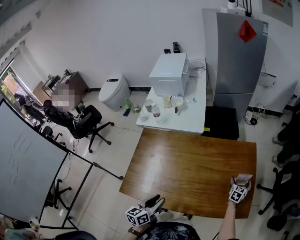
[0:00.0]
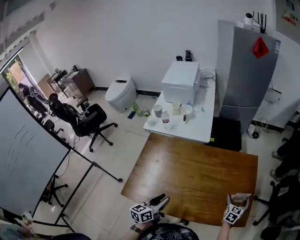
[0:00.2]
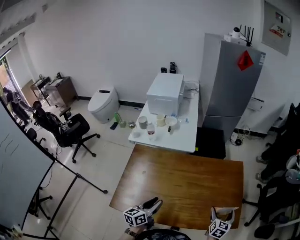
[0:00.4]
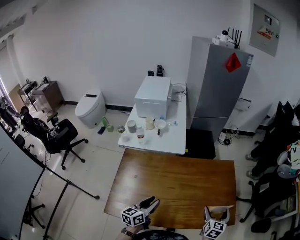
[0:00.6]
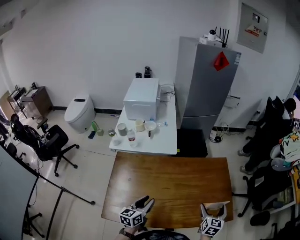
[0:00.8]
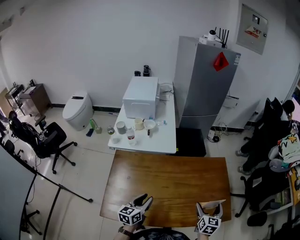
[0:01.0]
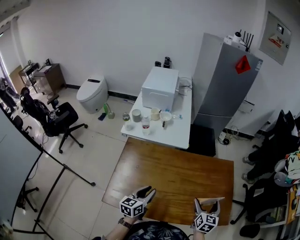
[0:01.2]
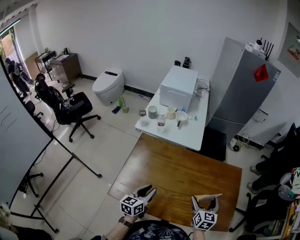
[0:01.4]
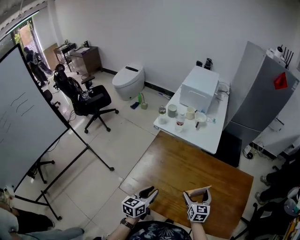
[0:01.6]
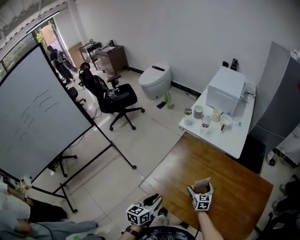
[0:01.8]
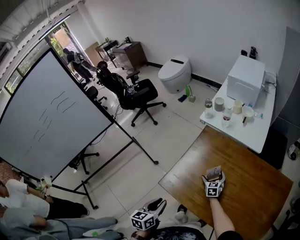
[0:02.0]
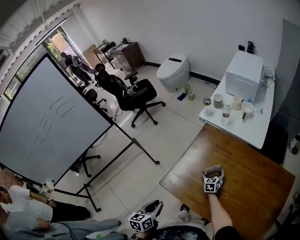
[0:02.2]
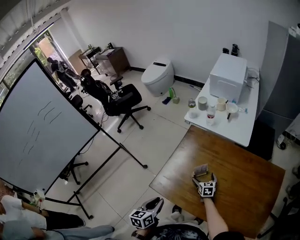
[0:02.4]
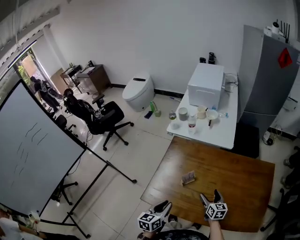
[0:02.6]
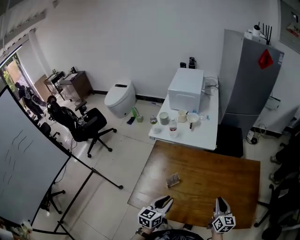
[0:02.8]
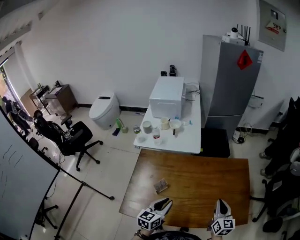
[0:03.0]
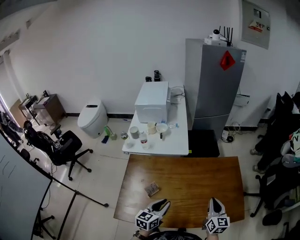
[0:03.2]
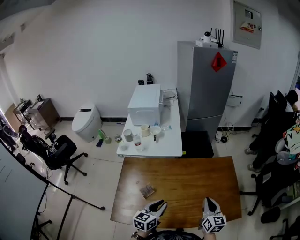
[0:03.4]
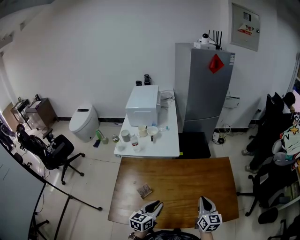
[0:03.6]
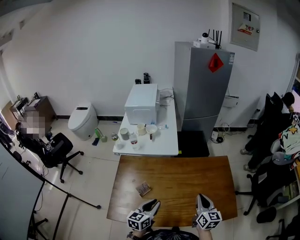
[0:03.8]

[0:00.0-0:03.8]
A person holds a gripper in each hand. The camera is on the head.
0:00.0 to 0:01.2: The right gripper is displaced backward, upward and to the left by roughly 35 cm, while the left gripper goes about 10 cm to the left and forward.
0:01.2 to 0:02.6: The left gripper rotates about 20 degrees. Meanwhile the right gripper turns by approximately 40 degrees.
0:02.6 to 0:03.8: The right gripper travels upward by roughly 20 cm, swivels some 30 degrees, and closes. The left gripper ends up roughly 15 cm from where it was, and turns by approximately 30 degrees.

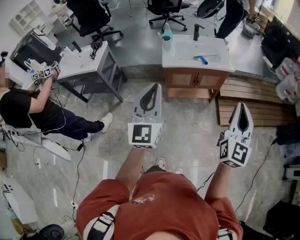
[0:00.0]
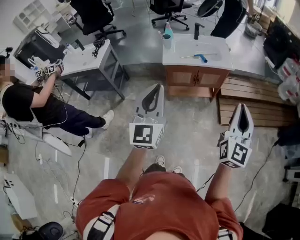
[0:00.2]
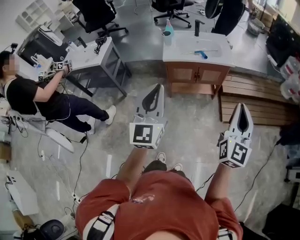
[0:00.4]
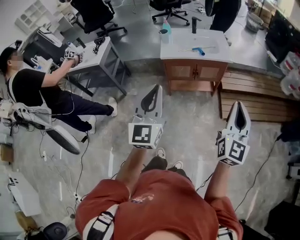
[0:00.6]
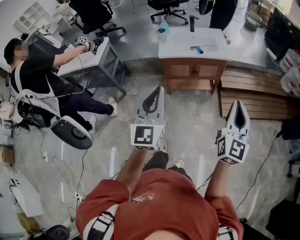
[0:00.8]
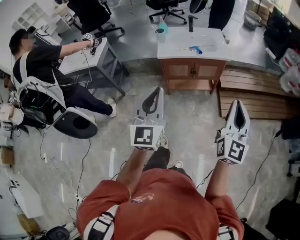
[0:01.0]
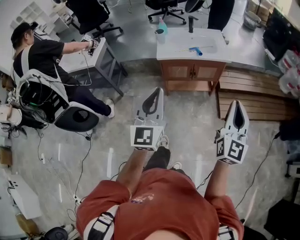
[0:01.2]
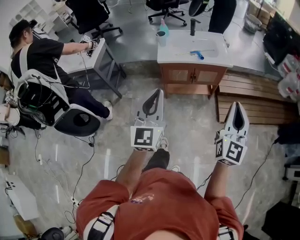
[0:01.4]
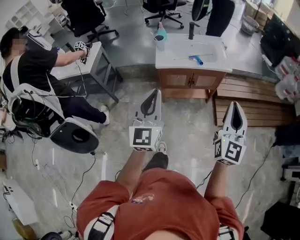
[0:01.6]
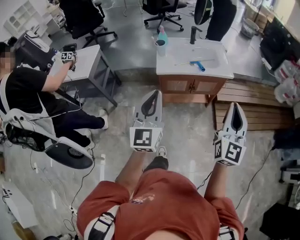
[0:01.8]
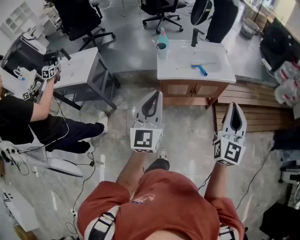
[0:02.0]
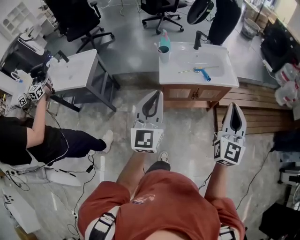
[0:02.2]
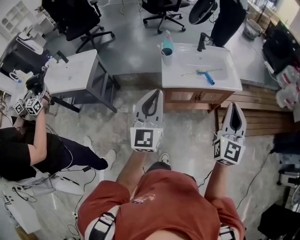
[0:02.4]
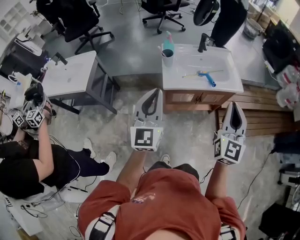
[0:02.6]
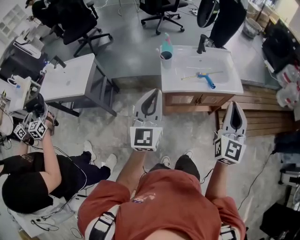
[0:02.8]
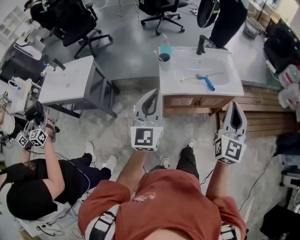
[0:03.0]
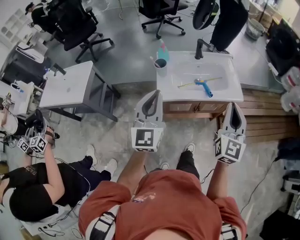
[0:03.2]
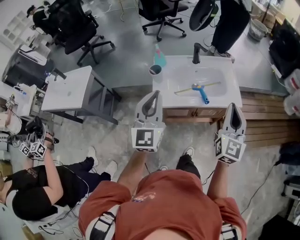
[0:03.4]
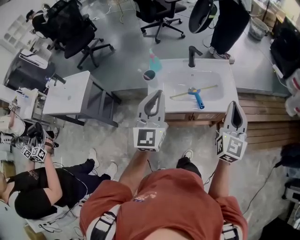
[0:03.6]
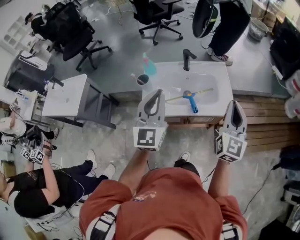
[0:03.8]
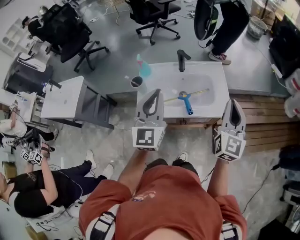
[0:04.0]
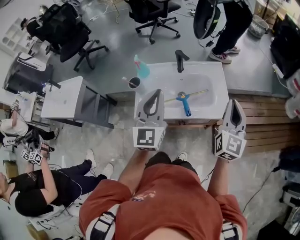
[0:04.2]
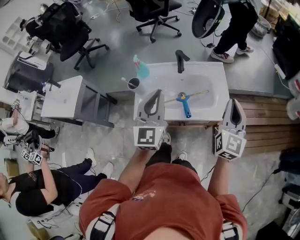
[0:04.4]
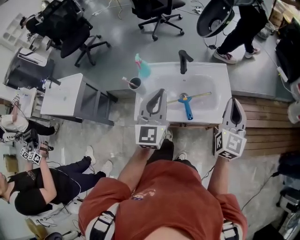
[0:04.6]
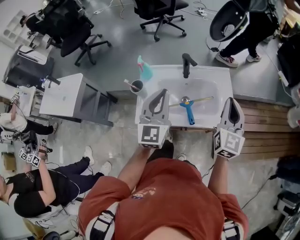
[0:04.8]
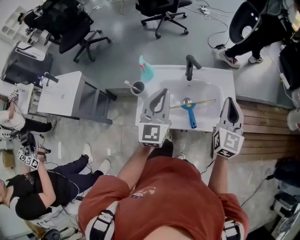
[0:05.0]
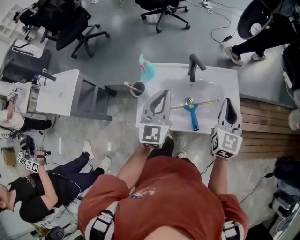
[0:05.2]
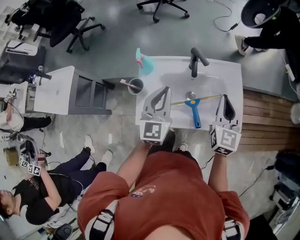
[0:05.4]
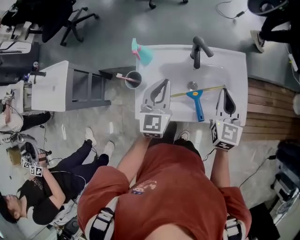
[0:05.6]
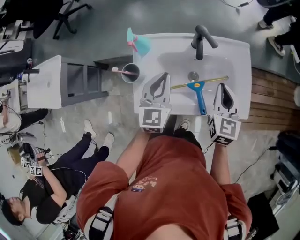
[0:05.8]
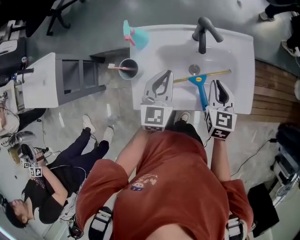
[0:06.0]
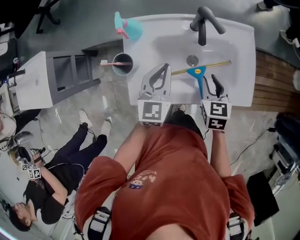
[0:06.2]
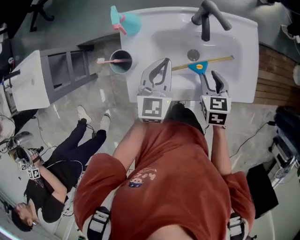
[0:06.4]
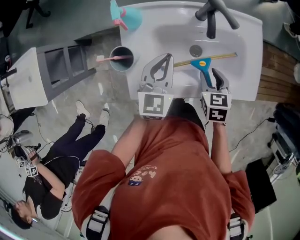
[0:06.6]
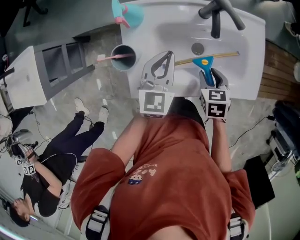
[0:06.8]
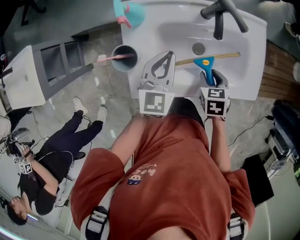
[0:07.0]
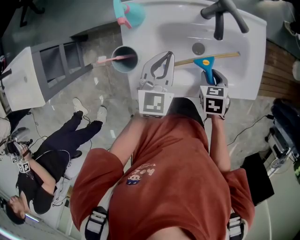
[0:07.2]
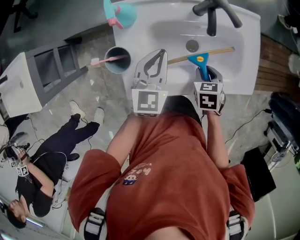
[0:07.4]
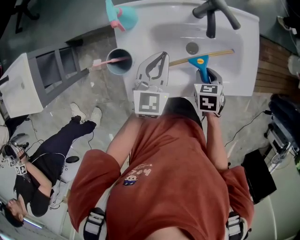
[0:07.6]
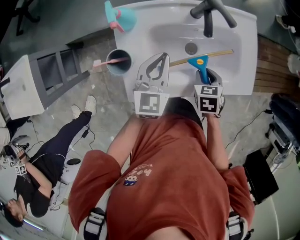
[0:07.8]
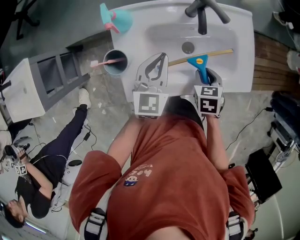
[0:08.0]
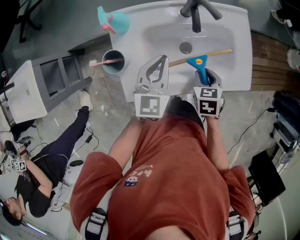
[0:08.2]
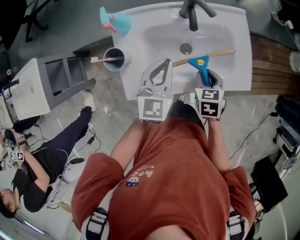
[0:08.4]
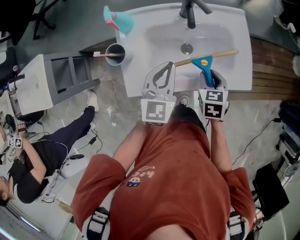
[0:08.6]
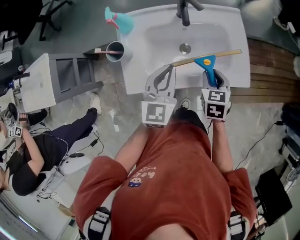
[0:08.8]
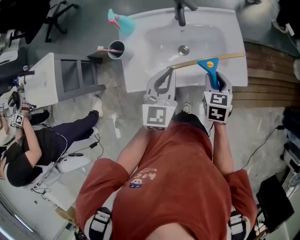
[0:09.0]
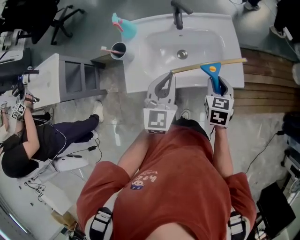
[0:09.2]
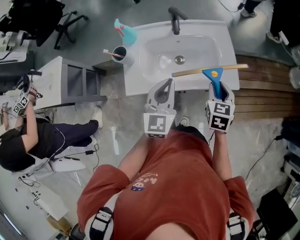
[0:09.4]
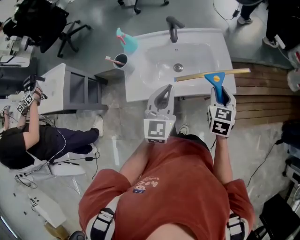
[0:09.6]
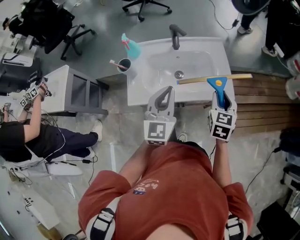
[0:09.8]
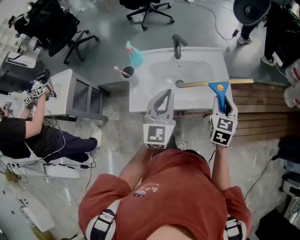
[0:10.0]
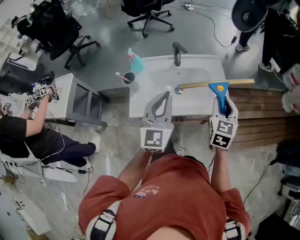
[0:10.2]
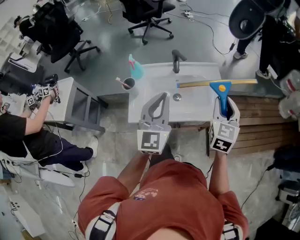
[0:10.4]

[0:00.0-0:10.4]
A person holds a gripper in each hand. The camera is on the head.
0:00.0 to 0:01.4: Both grippers move to the right, about 5 cm.
0:01.4 to 0:03.0: Both grippers move forward and to the left, roughly 40 cm.
0:03.0 to 0:04.4: The two grippers go roughly 40 cm forward and to the right.
0:04.4 to 0:06.0: The right gripper shifts some 40 cm downward, to the left and forward, and tips its fingers downward by roughly 30 degrees. The left gripper goes approximately 35 cm downward, forward and to the left, and changes its angle by roughly 20 degrees.
0:06.0 to 0:07.4: The right gripper travels downward by some 15 cm, tips its fingers downward by some 30 degrees, and opens up, while the left gripper shifts about 10 cm downward.
0:07.4 to 0:09.0: The left gripper shifts some 25 cm to the right, backward and upward. Meanwhile the right gripper moves upward, to the right and backward, approximately 20 cm, and rotates some 20 degrees.
0:09.0 to 0:10.4: The left gripper heads upward and backward, covering approximately 20 cm, and turns by about 20 degrees. Meanwhile the right gripper moves upward and to the right, approximately 25 cm, and points its fingers approximately 30 degrees further upward.

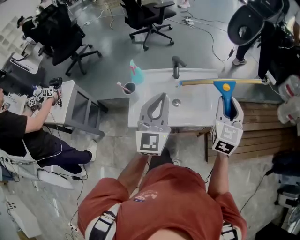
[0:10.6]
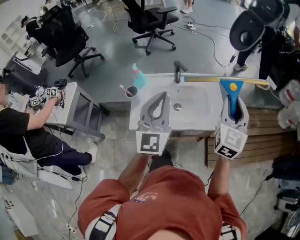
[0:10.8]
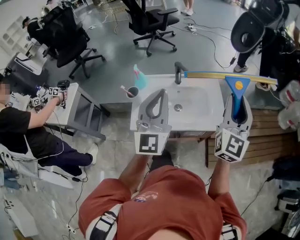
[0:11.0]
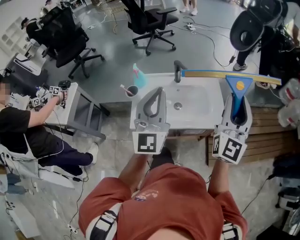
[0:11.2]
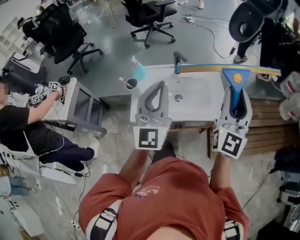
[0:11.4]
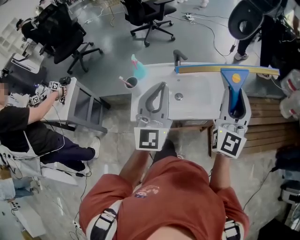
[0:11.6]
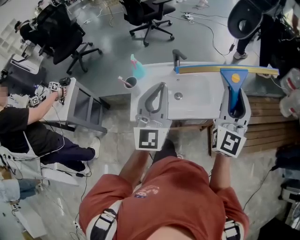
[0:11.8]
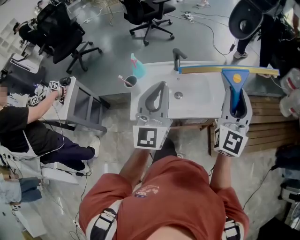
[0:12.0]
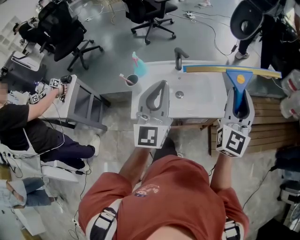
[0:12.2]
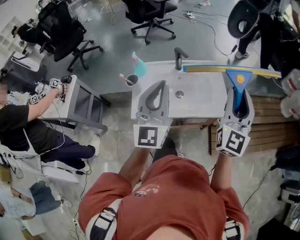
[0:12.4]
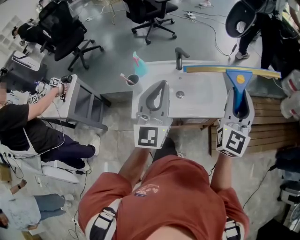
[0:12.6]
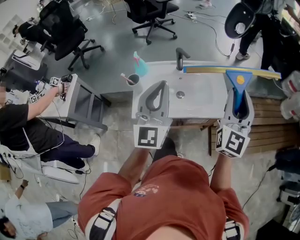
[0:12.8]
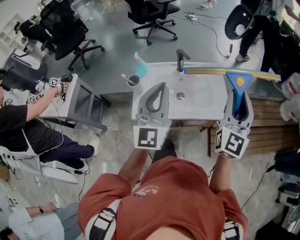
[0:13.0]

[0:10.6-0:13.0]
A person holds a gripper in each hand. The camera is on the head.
0:10.6 to 0:11.8: The right gripper is displaced upward and backward by some 10 cm, and turns by about 20 degrees.
0:11.8 to 0:13.0: The grippers move only a little.

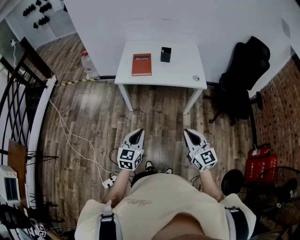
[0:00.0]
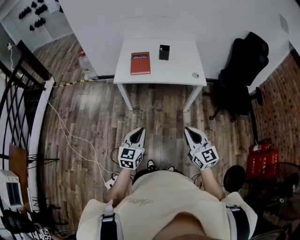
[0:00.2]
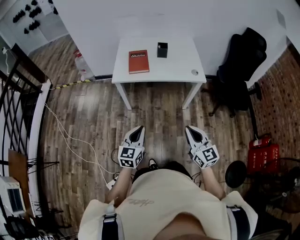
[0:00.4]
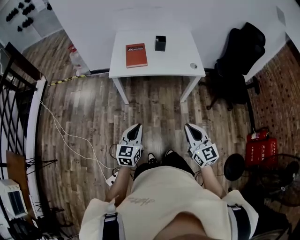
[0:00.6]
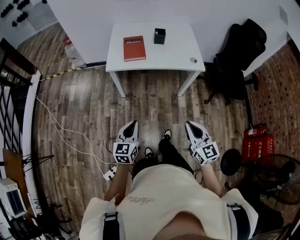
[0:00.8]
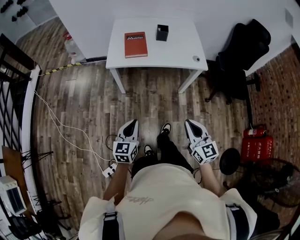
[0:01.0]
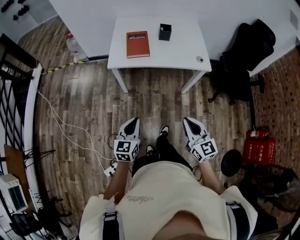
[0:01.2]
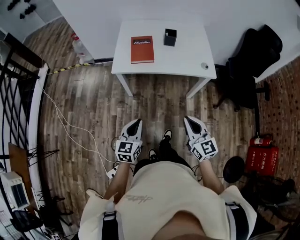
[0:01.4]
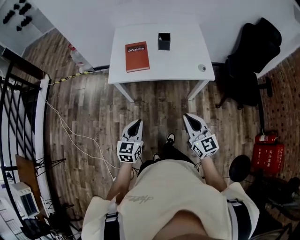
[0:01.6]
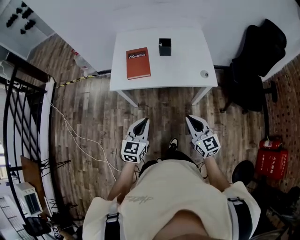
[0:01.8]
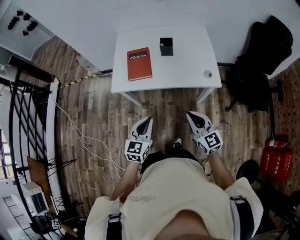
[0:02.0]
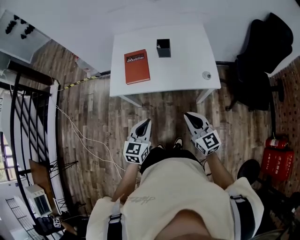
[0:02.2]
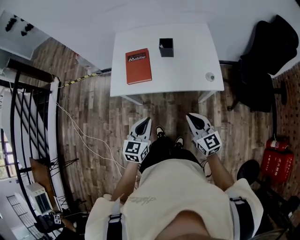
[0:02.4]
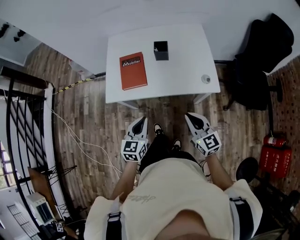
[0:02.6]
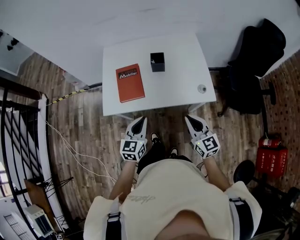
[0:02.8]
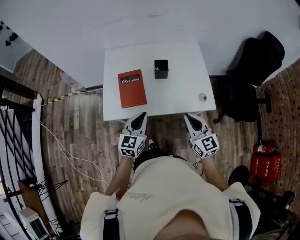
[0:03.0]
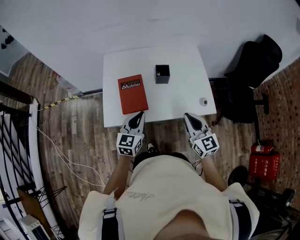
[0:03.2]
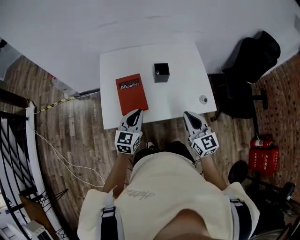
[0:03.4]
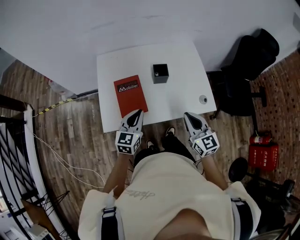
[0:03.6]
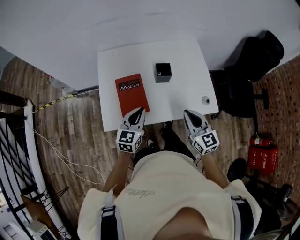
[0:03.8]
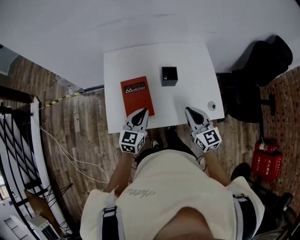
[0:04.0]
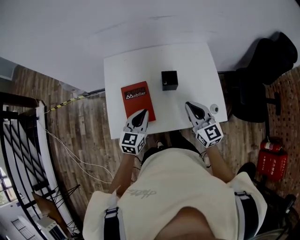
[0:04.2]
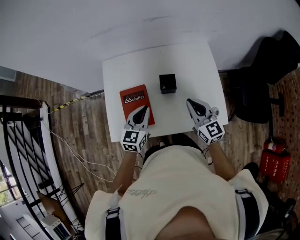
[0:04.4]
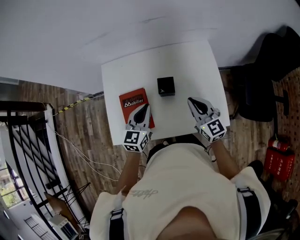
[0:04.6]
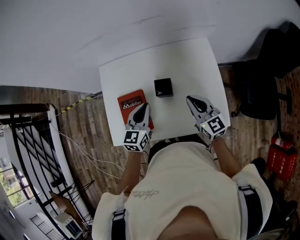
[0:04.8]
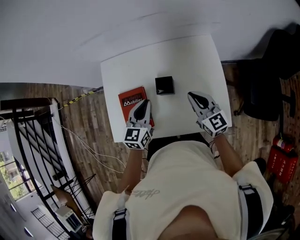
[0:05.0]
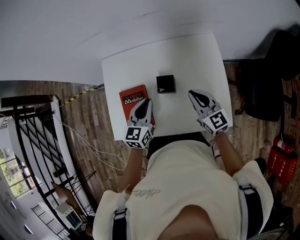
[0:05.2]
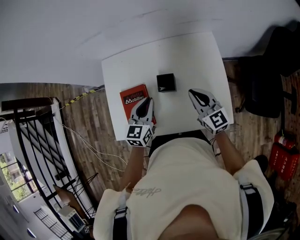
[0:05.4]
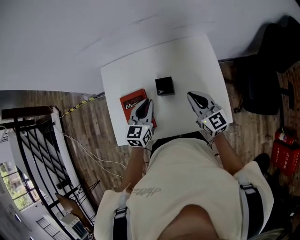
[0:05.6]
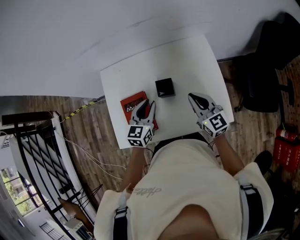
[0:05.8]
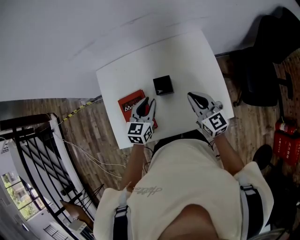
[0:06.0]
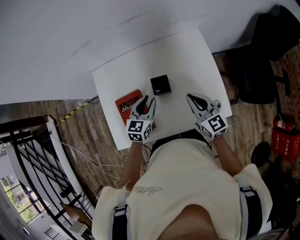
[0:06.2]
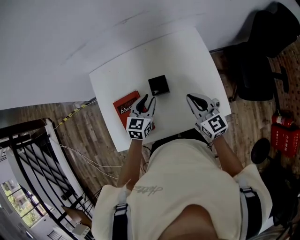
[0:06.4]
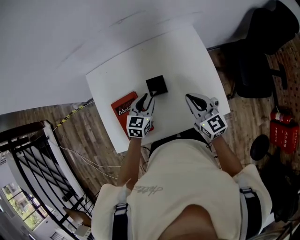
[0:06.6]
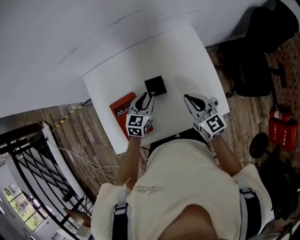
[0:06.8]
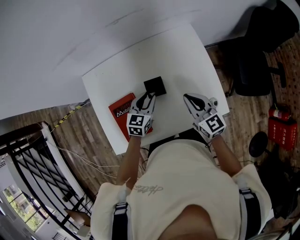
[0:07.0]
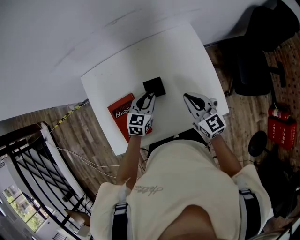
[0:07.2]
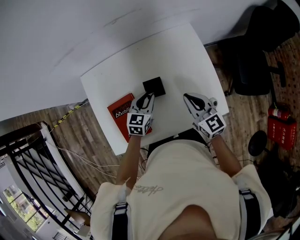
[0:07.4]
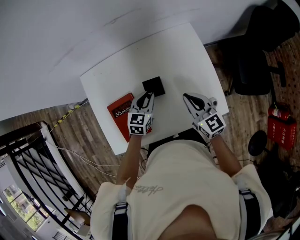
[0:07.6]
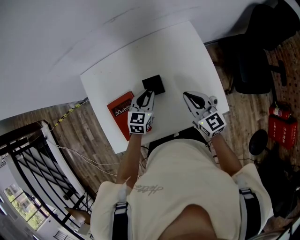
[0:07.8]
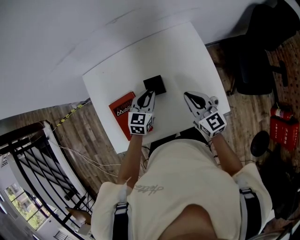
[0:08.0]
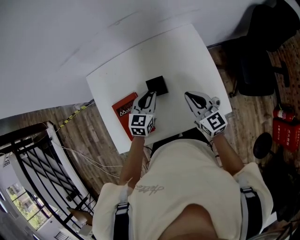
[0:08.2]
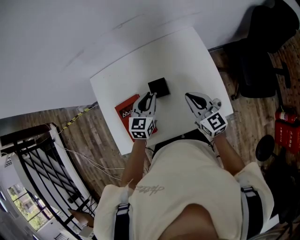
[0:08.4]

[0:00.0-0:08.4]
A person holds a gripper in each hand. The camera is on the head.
0:00.0 to 0:01.4: The grippers both shift forward by about 10 cm.
0:01.4 to 0:02.8: Both grippers move forward, roughly 25 cm.
0:02.8 to 0:04.2: The grippers both shift forward by about 20 cm.
0:04.2 to 0:05.6: Both grippers move forward and to the right, some 10 cm.
0:05.6 to 0:07.0: The left gripper moves downward, approximately 10 cm, and opens its fingers.
0:07.0 to 0:08.4: The left gripper moves upward, approximately 5 cm.
